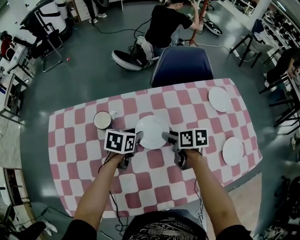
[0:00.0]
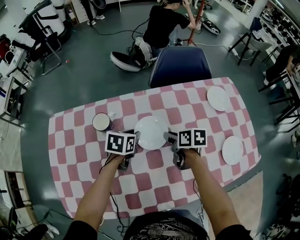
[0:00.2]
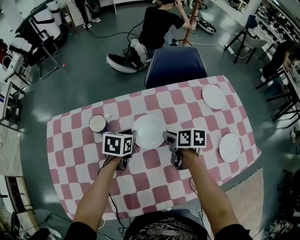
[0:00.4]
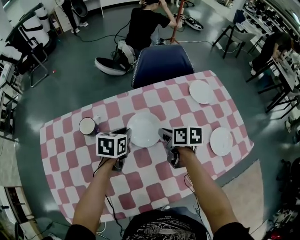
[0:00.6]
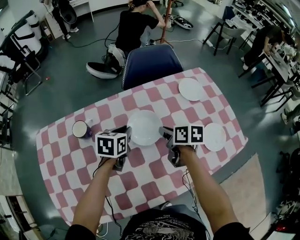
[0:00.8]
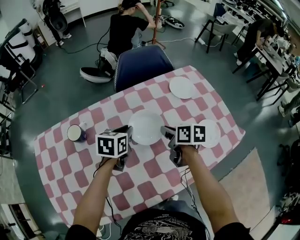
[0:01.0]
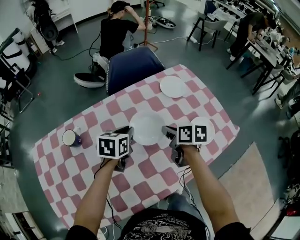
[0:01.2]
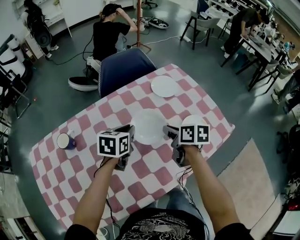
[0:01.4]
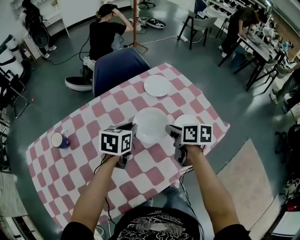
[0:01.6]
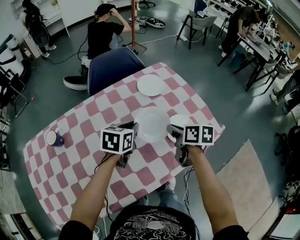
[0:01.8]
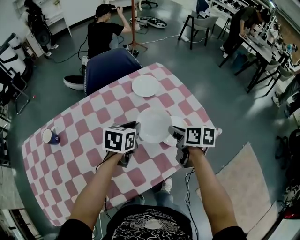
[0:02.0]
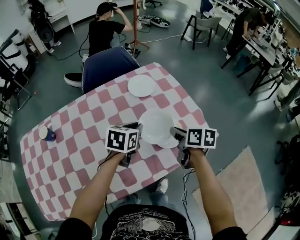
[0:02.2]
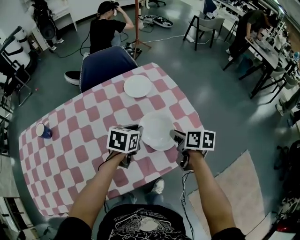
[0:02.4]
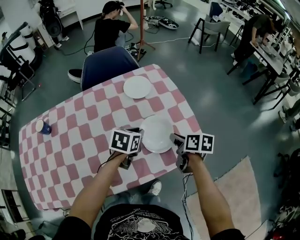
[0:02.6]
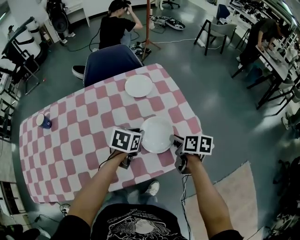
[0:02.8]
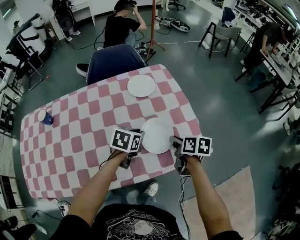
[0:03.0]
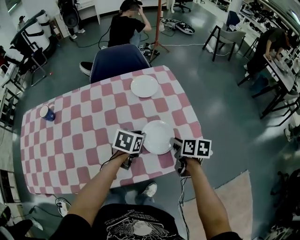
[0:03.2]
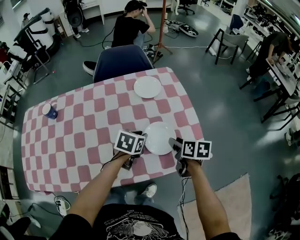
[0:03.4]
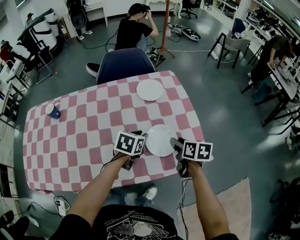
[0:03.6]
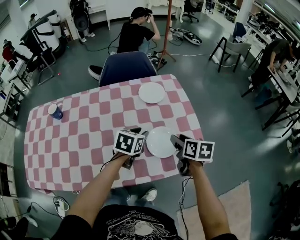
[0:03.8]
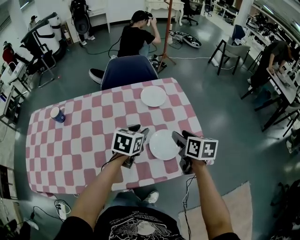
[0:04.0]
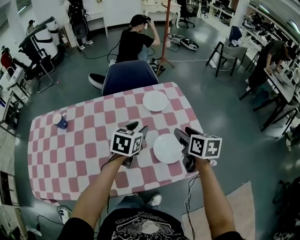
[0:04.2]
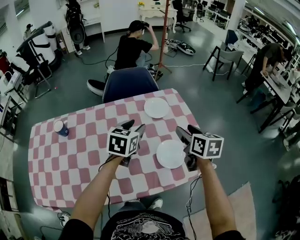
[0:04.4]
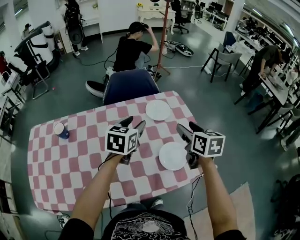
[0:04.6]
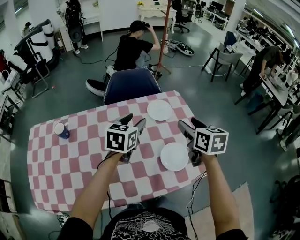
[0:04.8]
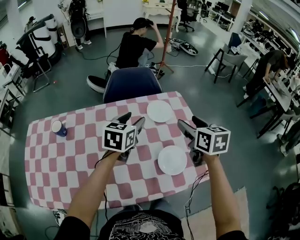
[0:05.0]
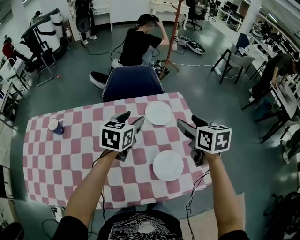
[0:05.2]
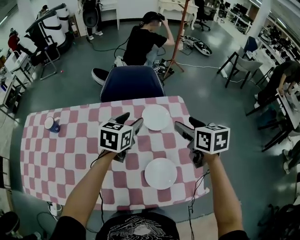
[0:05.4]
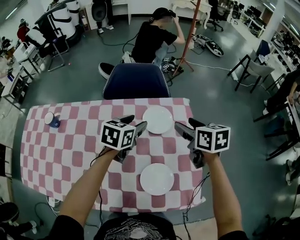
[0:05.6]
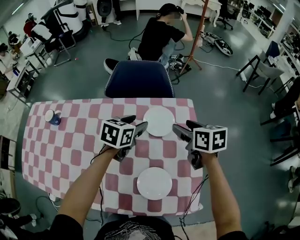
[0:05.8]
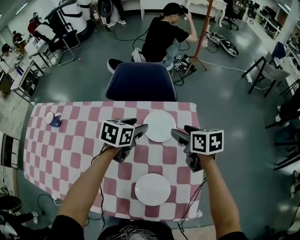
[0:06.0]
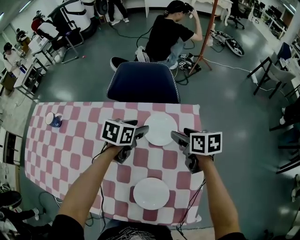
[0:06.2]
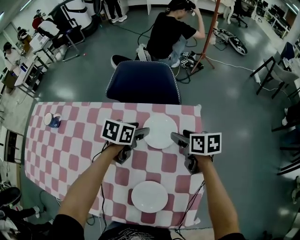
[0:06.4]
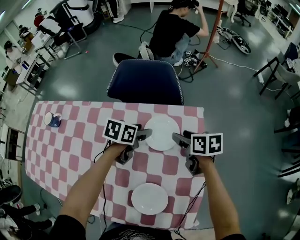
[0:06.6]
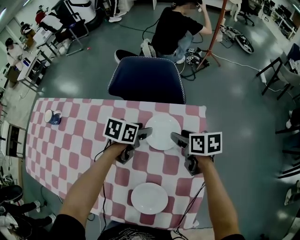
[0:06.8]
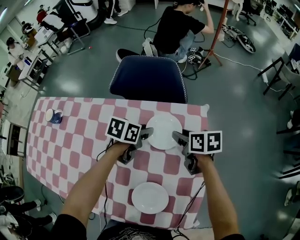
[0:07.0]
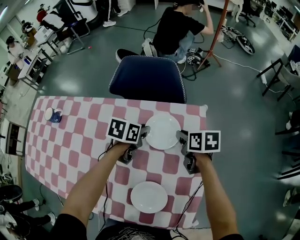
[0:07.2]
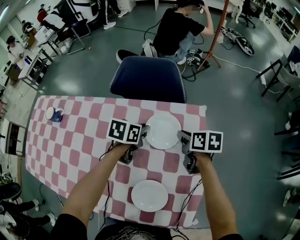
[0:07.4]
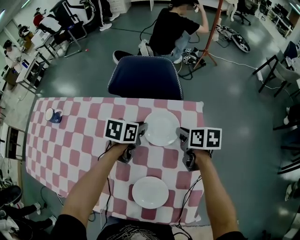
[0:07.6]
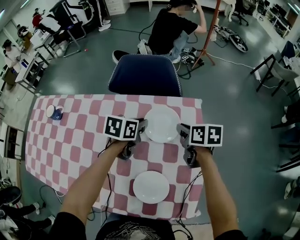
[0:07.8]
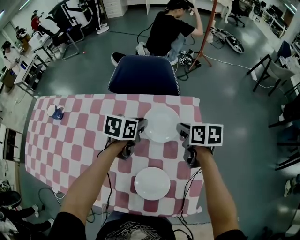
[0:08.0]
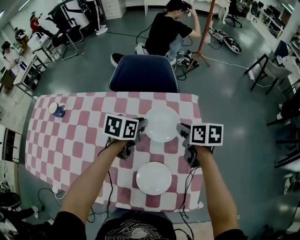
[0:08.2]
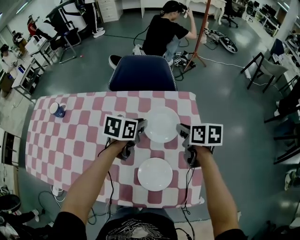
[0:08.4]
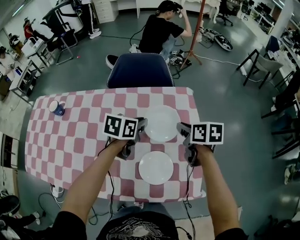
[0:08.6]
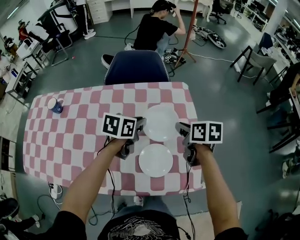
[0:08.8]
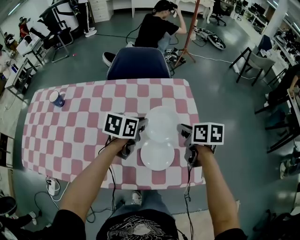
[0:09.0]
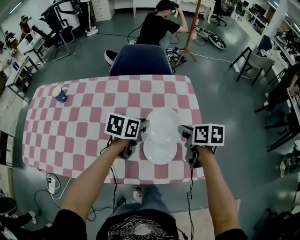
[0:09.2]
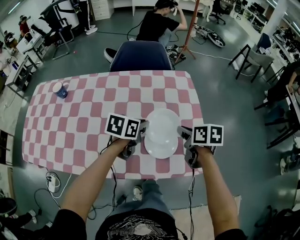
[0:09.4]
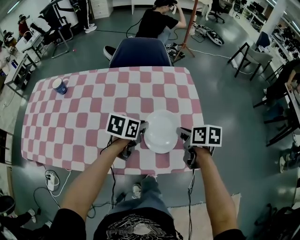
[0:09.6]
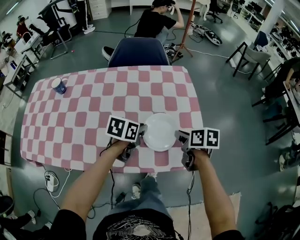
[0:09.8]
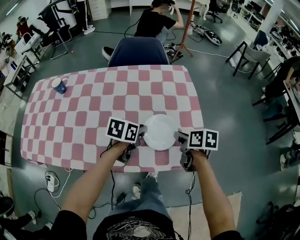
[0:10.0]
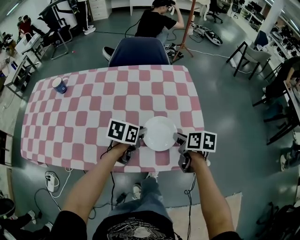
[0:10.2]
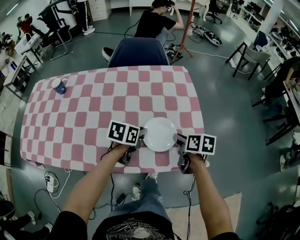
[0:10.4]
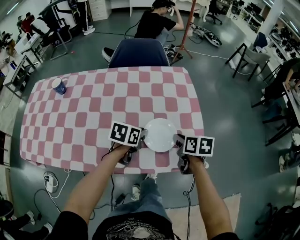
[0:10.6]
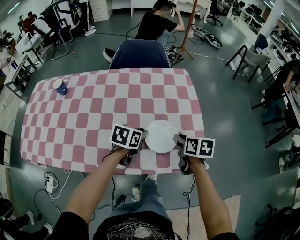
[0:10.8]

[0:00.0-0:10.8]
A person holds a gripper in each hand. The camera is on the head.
0.0 to 1.6 s: The grippers both shift to the right by approximately 25 cm. The right gripper changes its angle by roughly 30 degrees, and closes; the left gripper swivels about 20 degrees, and closes.
1.6 to 3.0 s: The two grippers go roughly 20 cm to the right.
3.0 to 4.6 s: The right gripper moves upward and forward, approximately 20 cm, swivels approximately 30 degrees, and opens. The left gripper travels upward, to the left and forward by roughly 25 cm, turns by about 30 degrees, and opens up.
4.6 to 6.2 s: The right gripper travels forward and downward by roughly 25 cm, and rotates roughly 40 degrees; the left gripper goes roughly 25 cm forward, downward and to the right, and changes its angle by approximately 30 degrees.
6.2 to 7.8 s: The left gripper closes up. Meanwhile the right gripper closes up.
7.8 to 9.2 s: Both grippers move backward, approximately 20 cm.
9.2 to 10.8 s: Both grippers move backward and downward, some 10 cm.

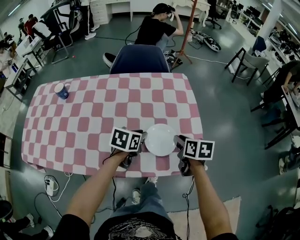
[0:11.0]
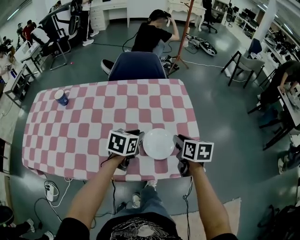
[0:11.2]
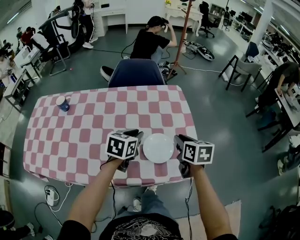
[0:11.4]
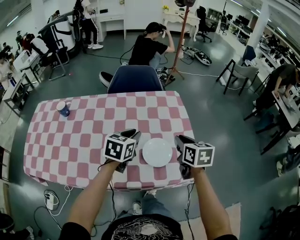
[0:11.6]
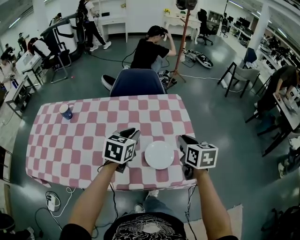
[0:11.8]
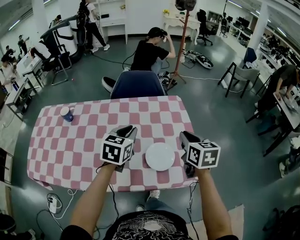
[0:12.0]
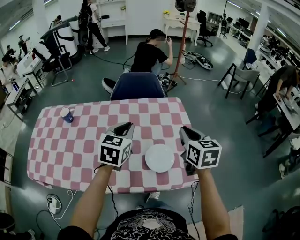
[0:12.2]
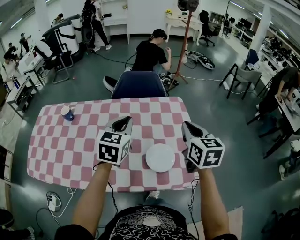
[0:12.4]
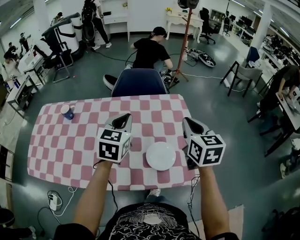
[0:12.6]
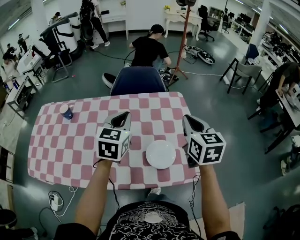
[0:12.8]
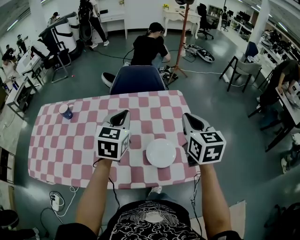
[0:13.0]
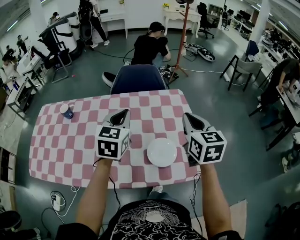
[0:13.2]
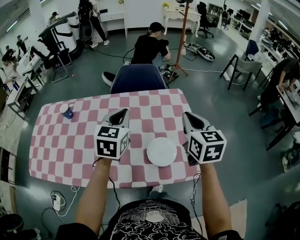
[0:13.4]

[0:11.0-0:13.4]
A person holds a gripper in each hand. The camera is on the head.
11.0 to 12.2 s: Both grippers move upward, roughly 20 cm. The left gripper rotates approximately 30 degrees. Meanwhile the right gripper turns by some 30 degrees.
12.2 to 13.4 s: The grippers make only small movements.

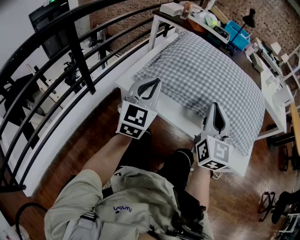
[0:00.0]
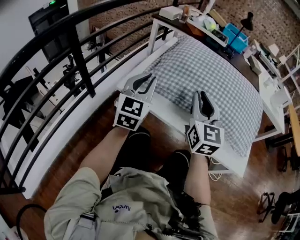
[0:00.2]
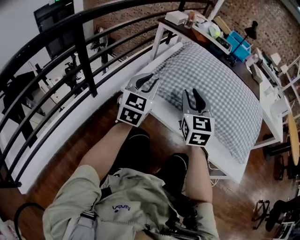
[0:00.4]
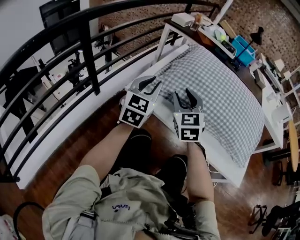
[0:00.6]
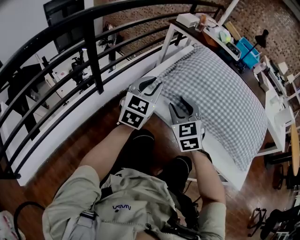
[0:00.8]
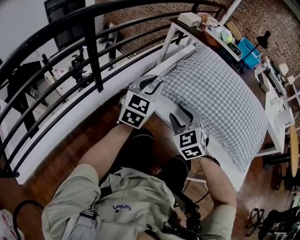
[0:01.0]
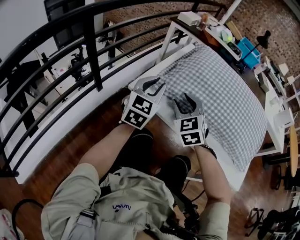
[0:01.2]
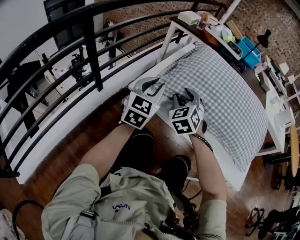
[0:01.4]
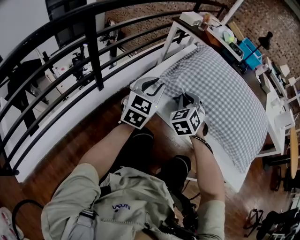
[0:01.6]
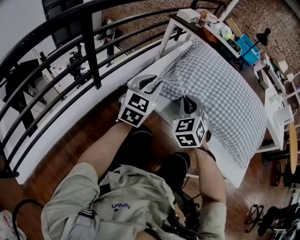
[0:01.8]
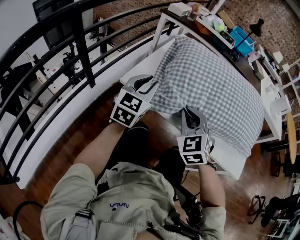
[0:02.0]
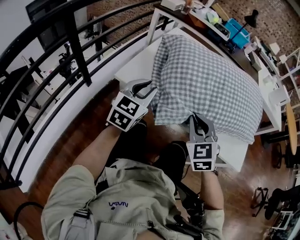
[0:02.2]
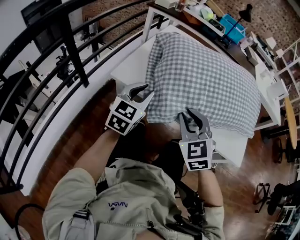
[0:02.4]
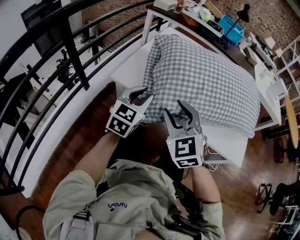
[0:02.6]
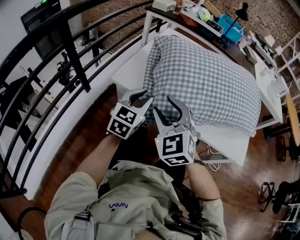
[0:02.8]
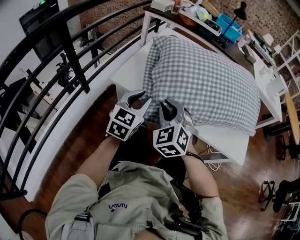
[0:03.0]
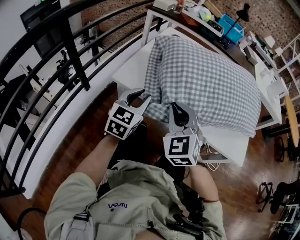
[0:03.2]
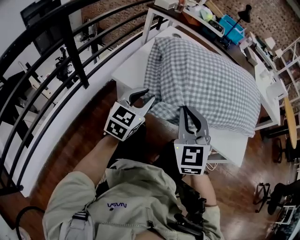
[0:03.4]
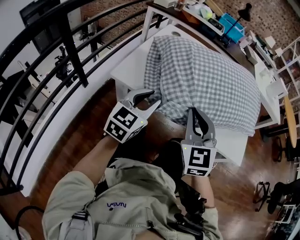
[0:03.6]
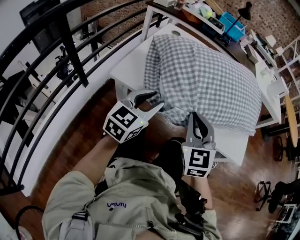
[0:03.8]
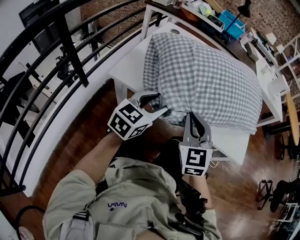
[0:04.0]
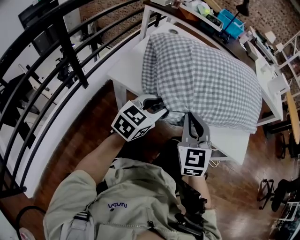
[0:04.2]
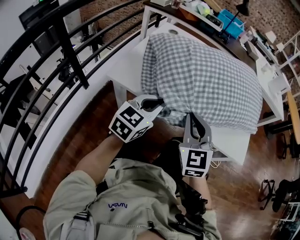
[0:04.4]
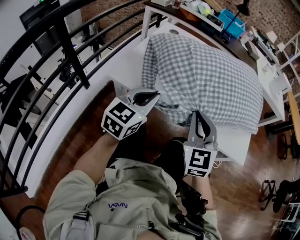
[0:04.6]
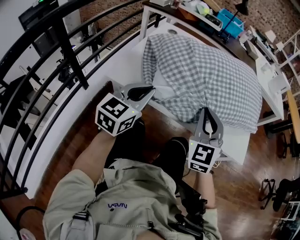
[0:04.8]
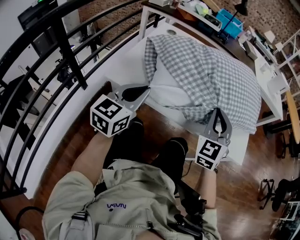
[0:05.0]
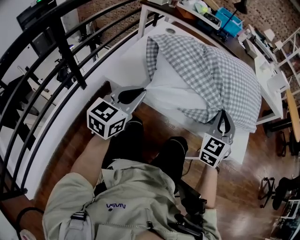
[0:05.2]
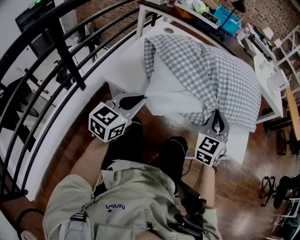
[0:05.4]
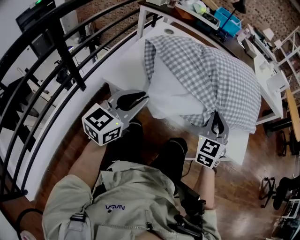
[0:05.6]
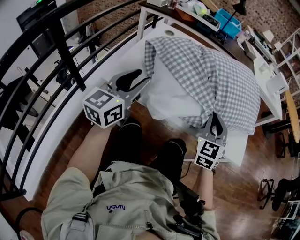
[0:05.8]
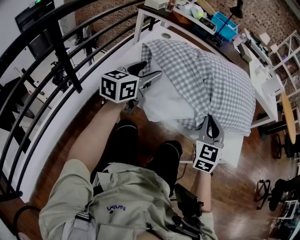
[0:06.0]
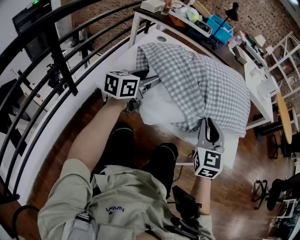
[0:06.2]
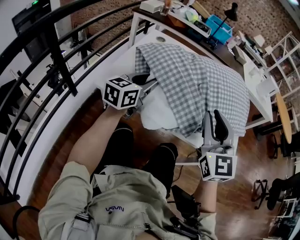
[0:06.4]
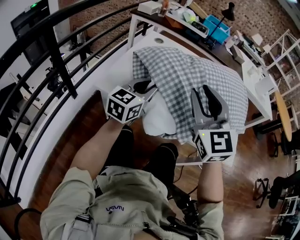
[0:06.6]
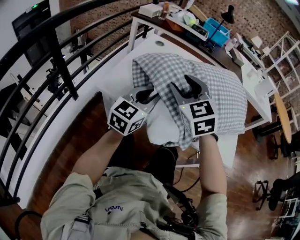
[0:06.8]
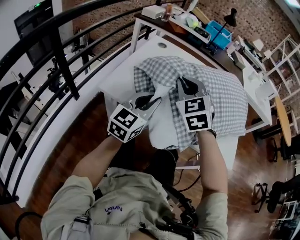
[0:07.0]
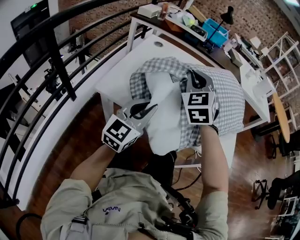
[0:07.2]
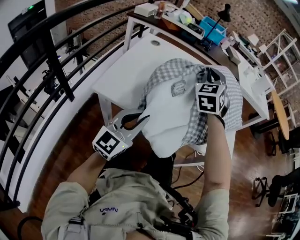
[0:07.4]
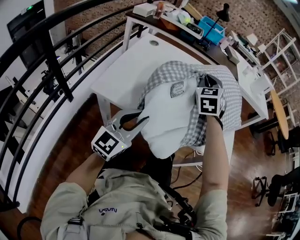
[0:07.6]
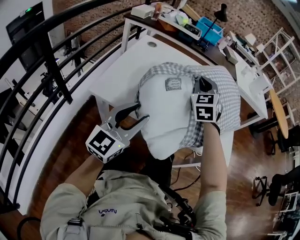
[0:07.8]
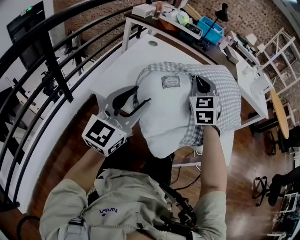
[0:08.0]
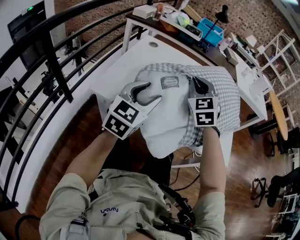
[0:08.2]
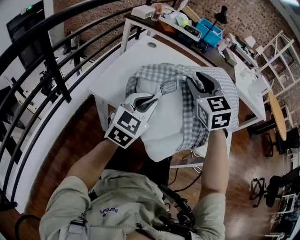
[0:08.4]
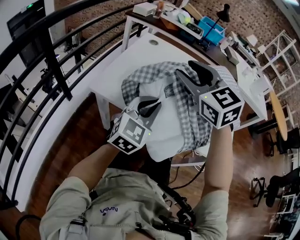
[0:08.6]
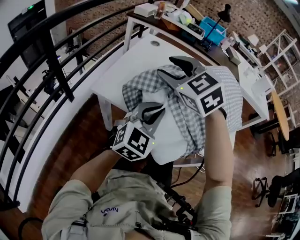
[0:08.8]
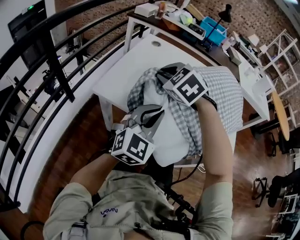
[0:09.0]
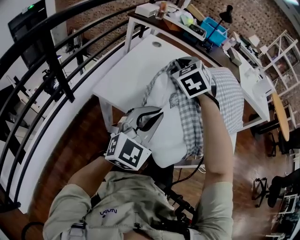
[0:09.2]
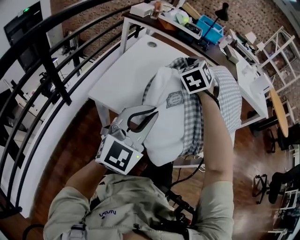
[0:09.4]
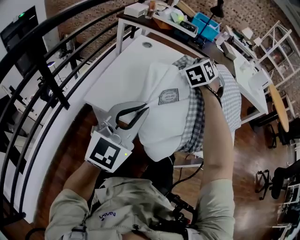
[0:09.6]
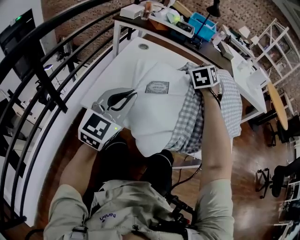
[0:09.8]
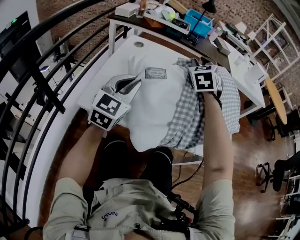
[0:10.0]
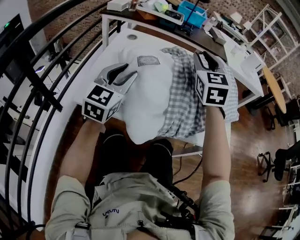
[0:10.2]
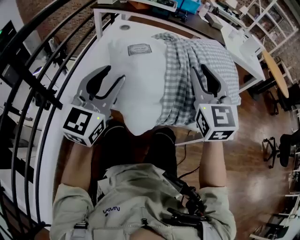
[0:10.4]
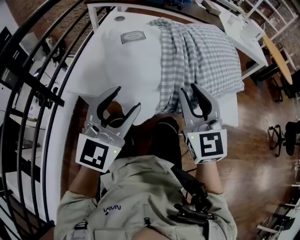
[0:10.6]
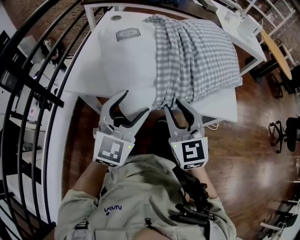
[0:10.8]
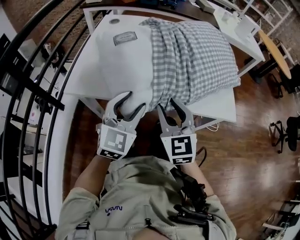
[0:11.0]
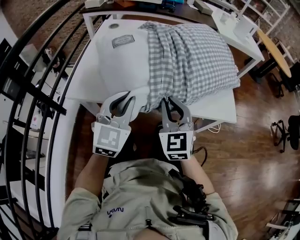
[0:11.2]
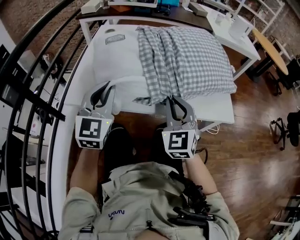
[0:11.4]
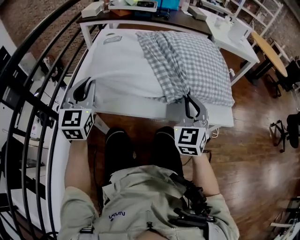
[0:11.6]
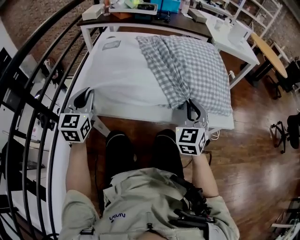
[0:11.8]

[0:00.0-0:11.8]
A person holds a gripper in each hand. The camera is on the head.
0.0 to 1.4 s: The left gripper shifts by approximately 5 cm, while the right gripper shifts about 20 cm to the left, downward and forward, points its fingers about 30 degrees further downward, and opens.
1.4 to 3.0 s: The right gripper moves backward, about 10 cm, and closes up. Meanwhile the left gripper moves backward, downward and to the right, roughly 10 cm.
3.0 to 4.4 s: Both grippers move to the right, roughly 10 cm. The left gripper opens, then closes once more, while the right gripper rotates some 30 degrees.
4.4 to 6.0 s: The right gripper shifts roughly 10 cm to the right and forward; the left gripper is displaced forward, to the left and upward by approximately 15 cm, turns by some 20 degrees, and opens its fingers.
6.0 to 7.4 s: The left gripper heads backward and to the right, covering about 15 cm, turns by approximately 30 degrees, and closes its fingers. The right gripper is displaced forward, upward and to the left by approximately 20 cm, and opens, then closes again.
7.4 to 8.8 s: The left gripper moves approximately 10 cm upward and comes back, rotates some 20 degrees, and opens, then closes again. The right gripper shifts by approximately 20 cm, changes its angle by approximately 50 degrees, and opens.
8.8 to 10.4 s: The right gripper travels downward and back again, roughly 5 cm each way, swivels roughly 40 degrees, and closes. The left gripper swings up and down, roughly 10 cm each way, with 2 reversals, and opens its fingers.
10.4 to 11.8 s: The right gripper heads downward and to the right, covering roughly 20 cm, changes its angle by about 30 degrees, and closes up, while the left gripper travels downward and to the left by some 10 cm, and closes its fingers.
